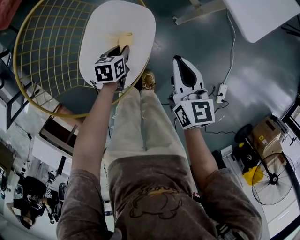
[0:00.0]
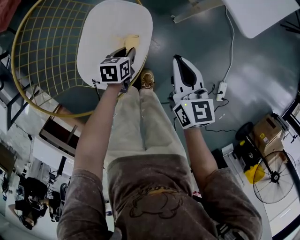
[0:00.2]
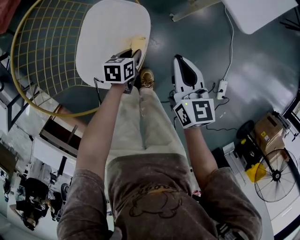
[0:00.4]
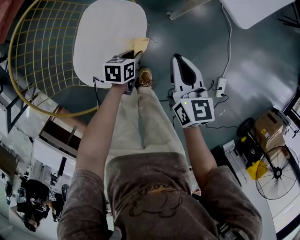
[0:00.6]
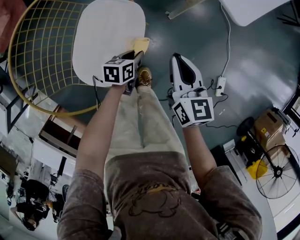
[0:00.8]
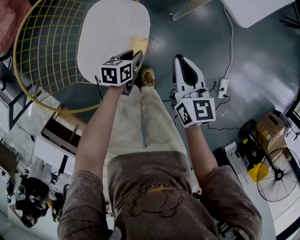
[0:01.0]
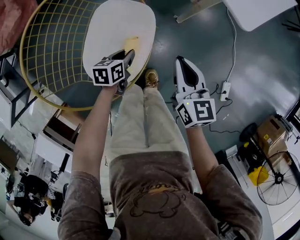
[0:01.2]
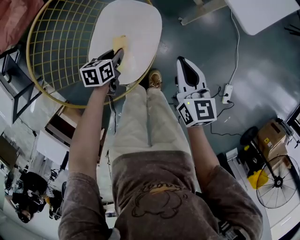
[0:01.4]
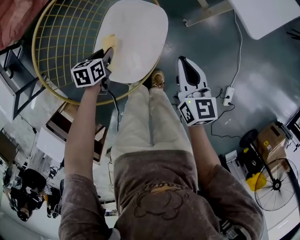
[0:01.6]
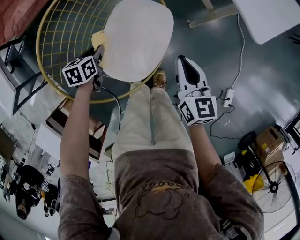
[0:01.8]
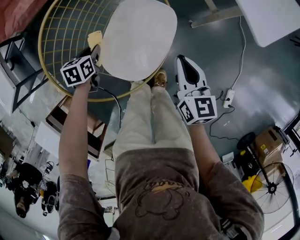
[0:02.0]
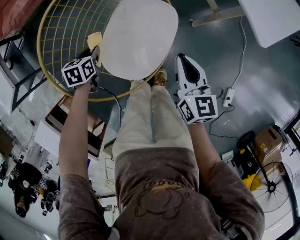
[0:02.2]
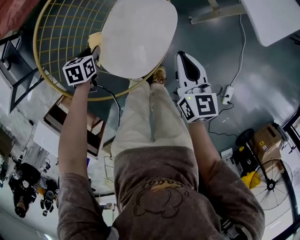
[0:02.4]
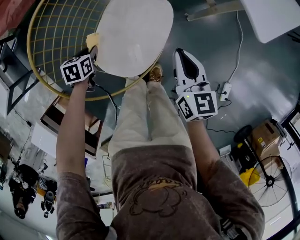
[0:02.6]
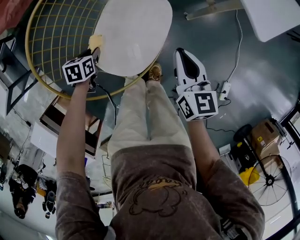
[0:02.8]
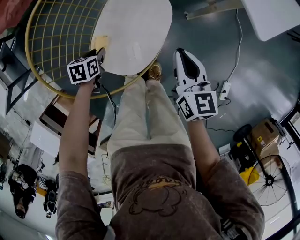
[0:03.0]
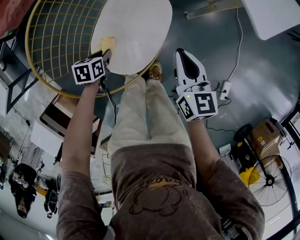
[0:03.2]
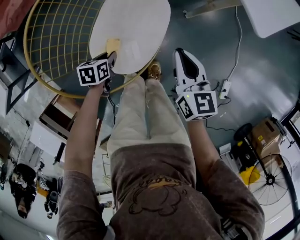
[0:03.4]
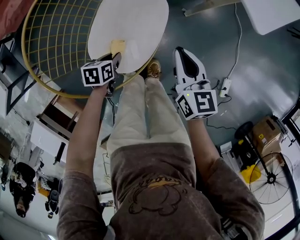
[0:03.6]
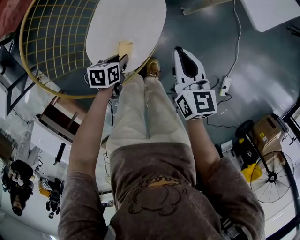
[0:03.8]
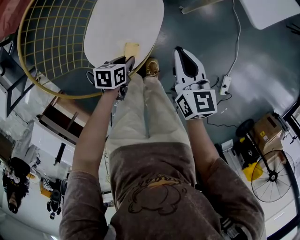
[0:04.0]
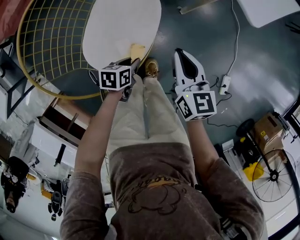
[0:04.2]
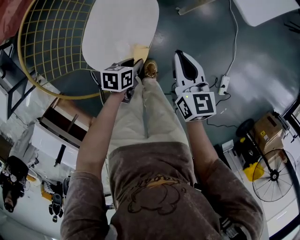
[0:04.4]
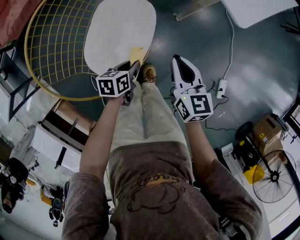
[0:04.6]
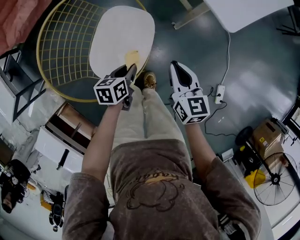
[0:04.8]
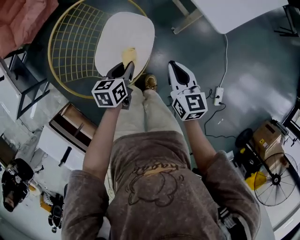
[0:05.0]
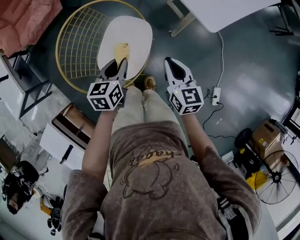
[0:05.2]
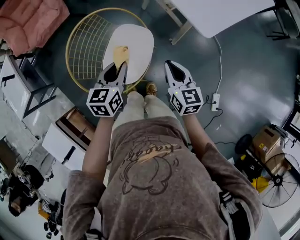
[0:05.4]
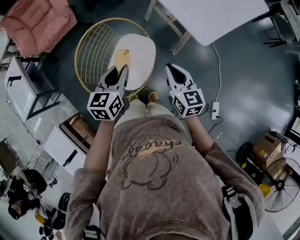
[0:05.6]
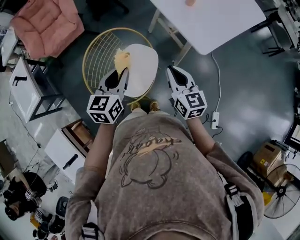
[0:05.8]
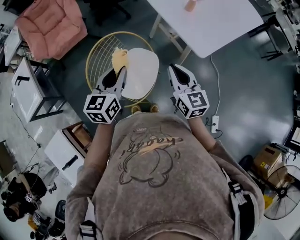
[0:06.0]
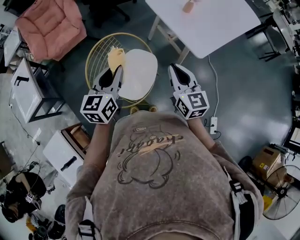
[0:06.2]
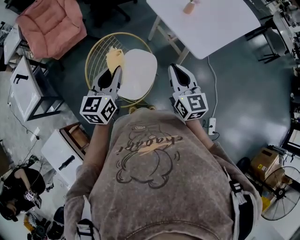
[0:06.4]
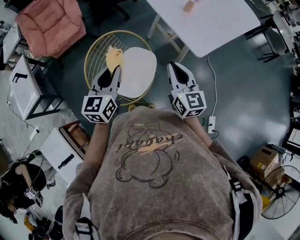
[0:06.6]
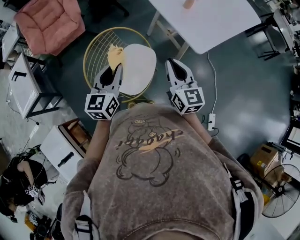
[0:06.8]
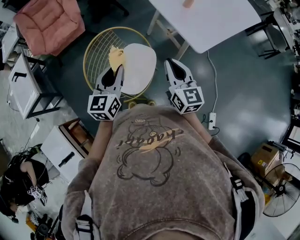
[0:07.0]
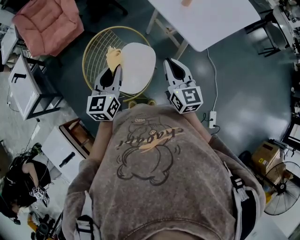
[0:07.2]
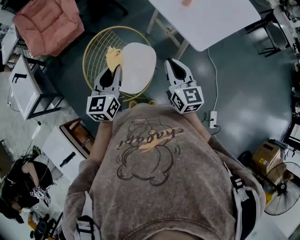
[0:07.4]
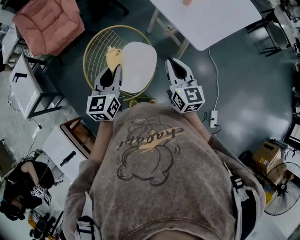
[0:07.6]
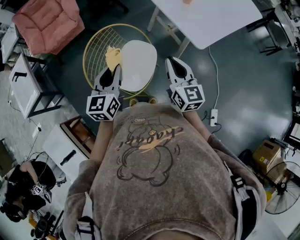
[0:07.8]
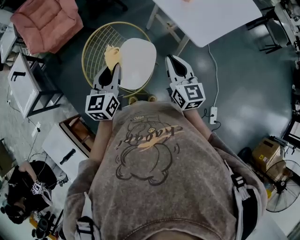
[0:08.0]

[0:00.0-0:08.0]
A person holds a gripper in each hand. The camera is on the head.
0.0 to 1.6 s: The left gripper travels to the left and backward by about 10 cm.
1.6 to 3.2 s: The left gripper reaches roughly 10 cm to the left, then returns.
3.2 to 4.8 s: The right gripper goes about 5 cm to the right; the left gripper heads to the right and upward, covering approximately 20 cm.
4.8 to 6.4 s: The two grippers go approximately 35 cm upward. The left gripper tips its fingers upward by roughly 30 degrees. Meanwhile the right gripper rotates roughly 20 degrees.
6.4 to 8.0 s: The grippers stay close to where they were, moving slightly.

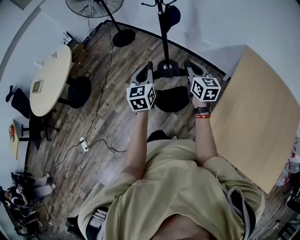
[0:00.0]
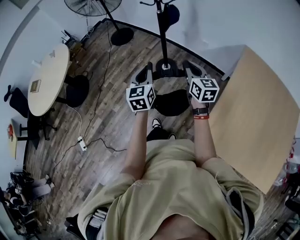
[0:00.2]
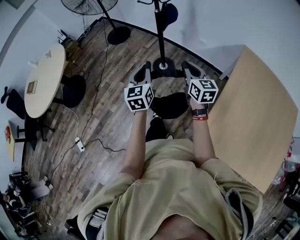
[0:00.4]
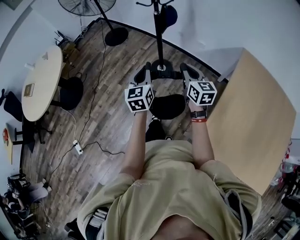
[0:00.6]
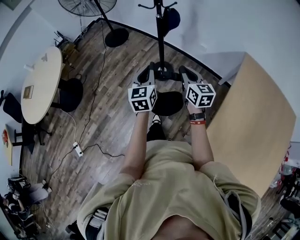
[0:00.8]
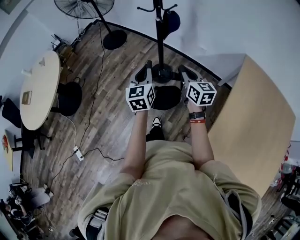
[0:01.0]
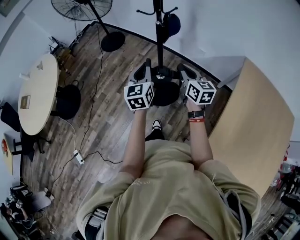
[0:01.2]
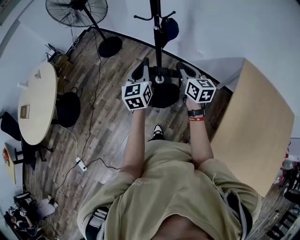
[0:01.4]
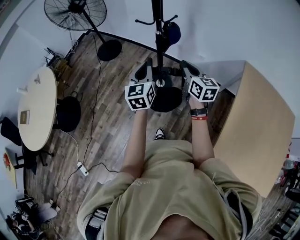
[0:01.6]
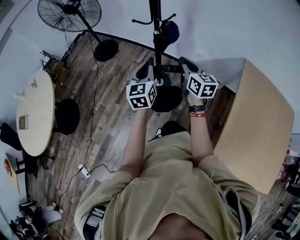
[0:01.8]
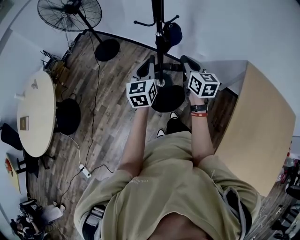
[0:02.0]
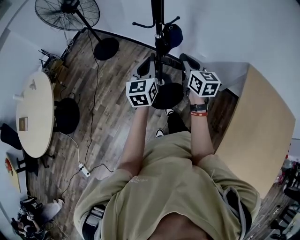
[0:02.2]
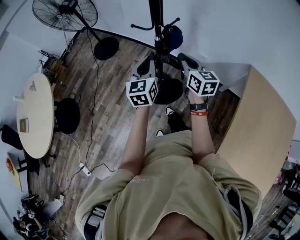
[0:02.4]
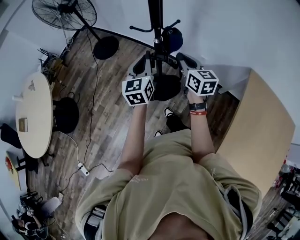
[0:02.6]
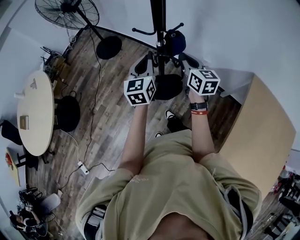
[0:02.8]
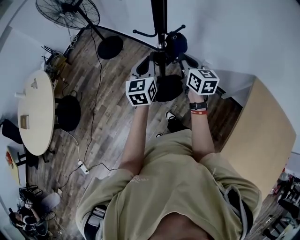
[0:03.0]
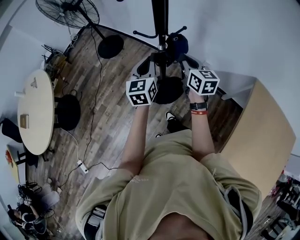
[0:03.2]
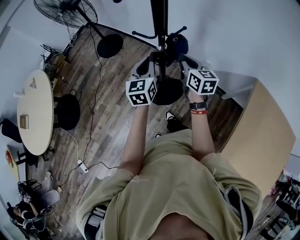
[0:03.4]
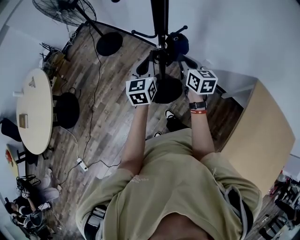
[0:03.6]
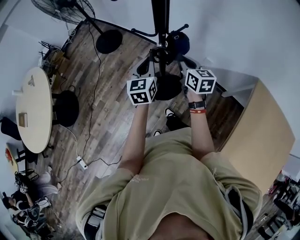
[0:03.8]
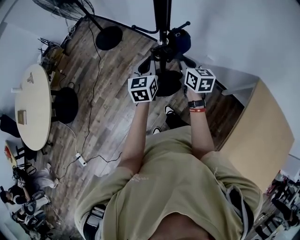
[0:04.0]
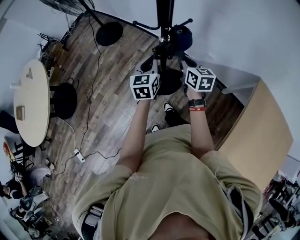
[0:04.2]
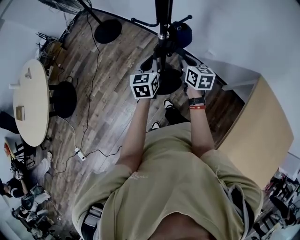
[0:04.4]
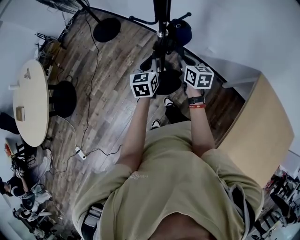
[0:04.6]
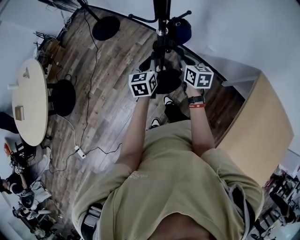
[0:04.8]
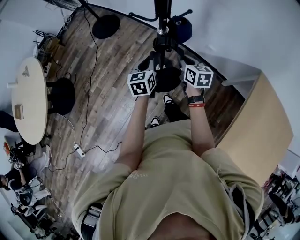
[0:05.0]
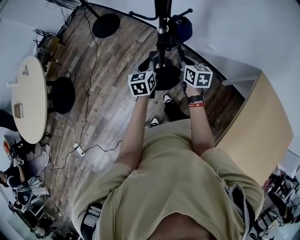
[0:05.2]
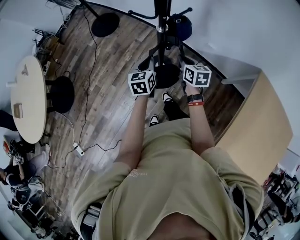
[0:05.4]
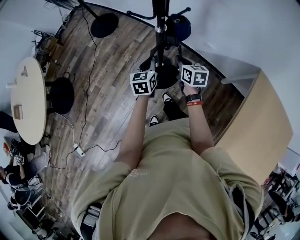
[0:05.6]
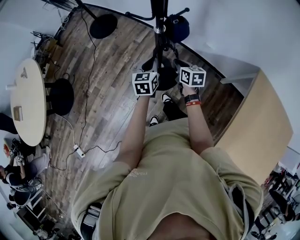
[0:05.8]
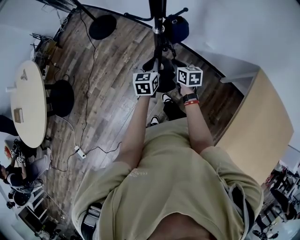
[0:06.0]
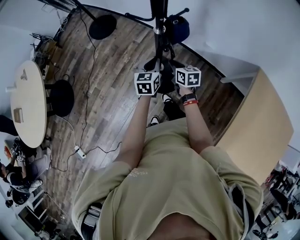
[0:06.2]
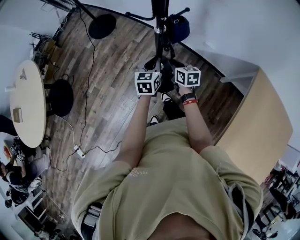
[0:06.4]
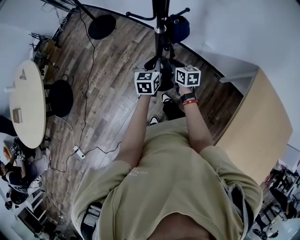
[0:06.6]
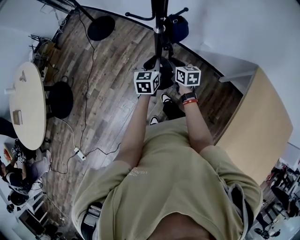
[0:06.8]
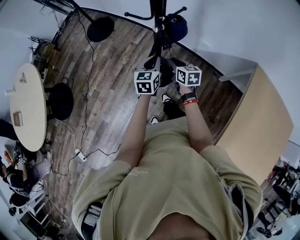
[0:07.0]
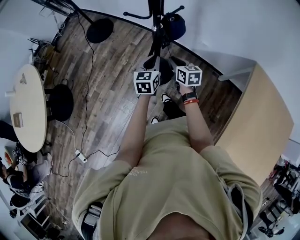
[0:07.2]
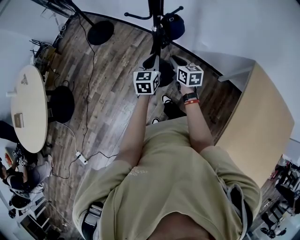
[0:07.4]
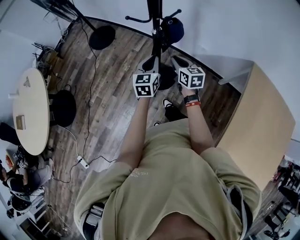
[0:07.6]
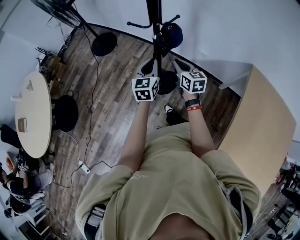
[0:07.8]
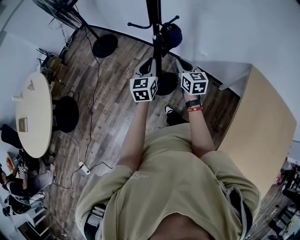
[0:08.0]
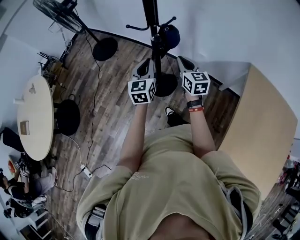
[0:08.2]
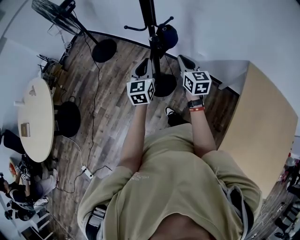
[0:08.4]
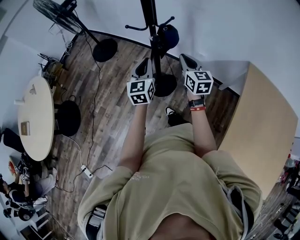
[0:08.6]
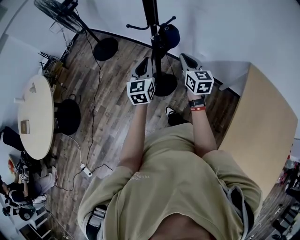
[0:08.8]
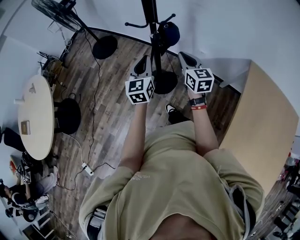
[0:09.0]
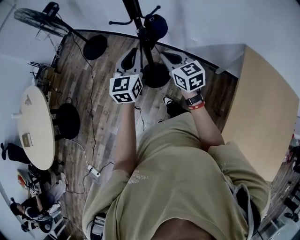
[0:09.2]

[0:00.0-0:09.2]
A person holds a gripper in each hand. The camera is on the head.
0.0 to 1.6 s: Both grippers move forward, some 30 cm.
1.6 to 3.0 s: Both grippers move forward, about 20 cm.
3.0 to 4.6 s: Both grippers travel together downward, some 15 cm.
4.6 to 6.2 s: The left gripper travels downward by approximately 5 cm, while the right gripper travels downward by some 10 cm.
6.2 to 7.6 s: Both grippers move upward, roughly 10 cm.
7.6 to 9.2 s: The grippers both shift upward by approximately 10 cm.

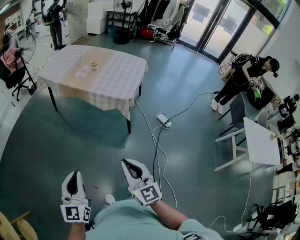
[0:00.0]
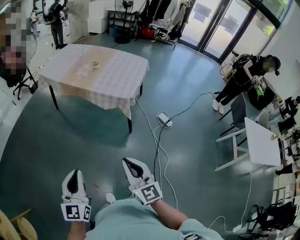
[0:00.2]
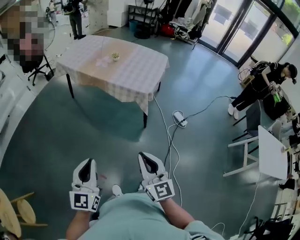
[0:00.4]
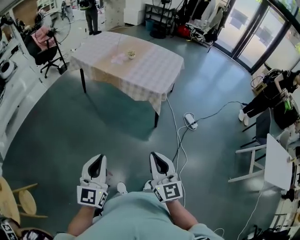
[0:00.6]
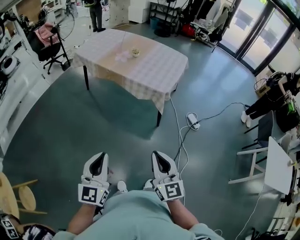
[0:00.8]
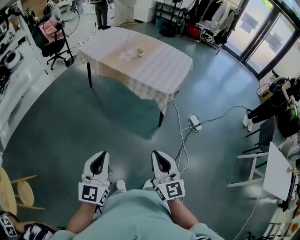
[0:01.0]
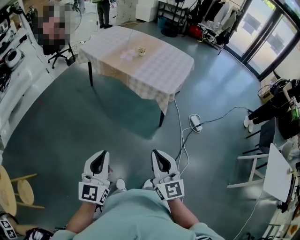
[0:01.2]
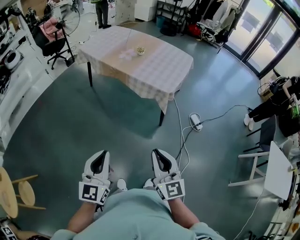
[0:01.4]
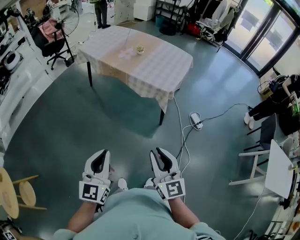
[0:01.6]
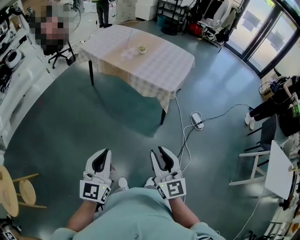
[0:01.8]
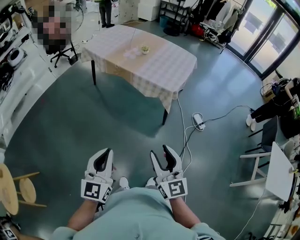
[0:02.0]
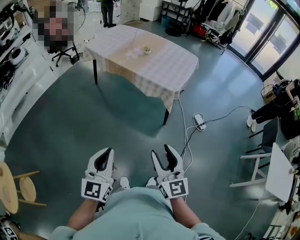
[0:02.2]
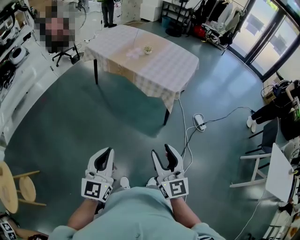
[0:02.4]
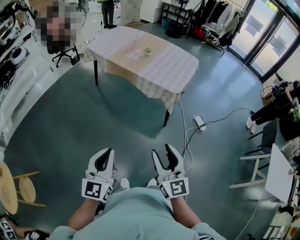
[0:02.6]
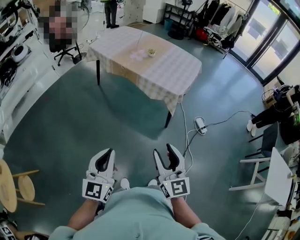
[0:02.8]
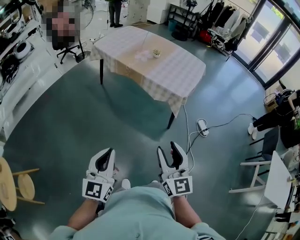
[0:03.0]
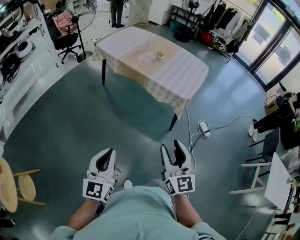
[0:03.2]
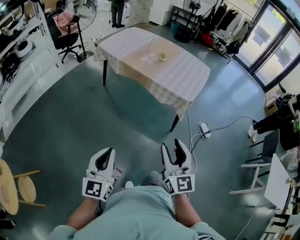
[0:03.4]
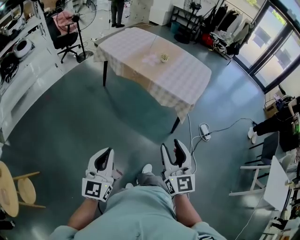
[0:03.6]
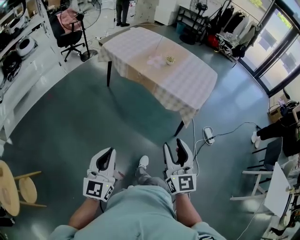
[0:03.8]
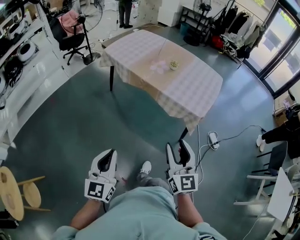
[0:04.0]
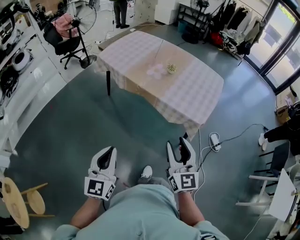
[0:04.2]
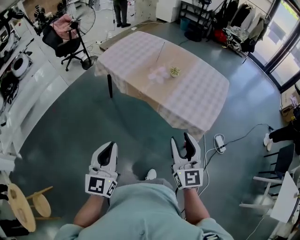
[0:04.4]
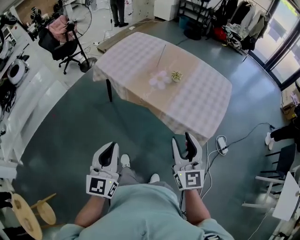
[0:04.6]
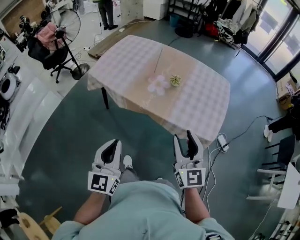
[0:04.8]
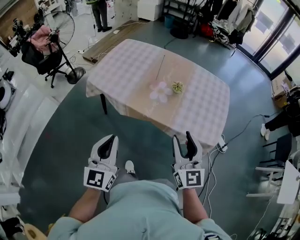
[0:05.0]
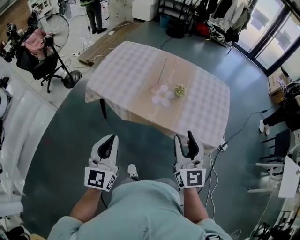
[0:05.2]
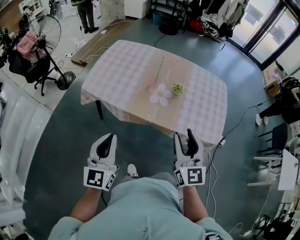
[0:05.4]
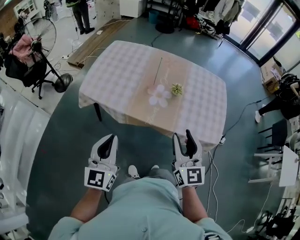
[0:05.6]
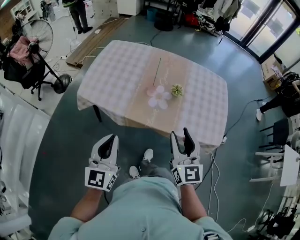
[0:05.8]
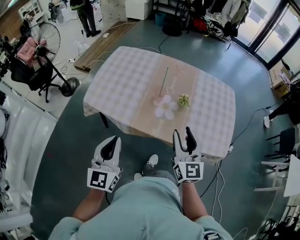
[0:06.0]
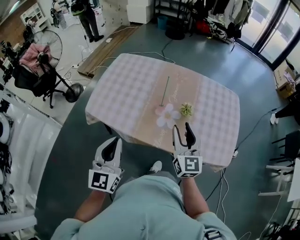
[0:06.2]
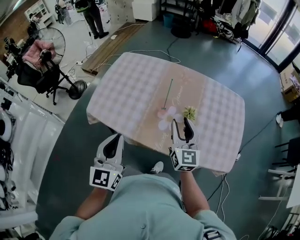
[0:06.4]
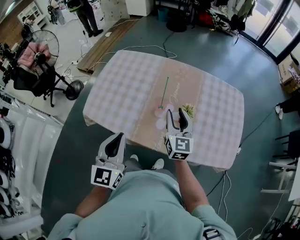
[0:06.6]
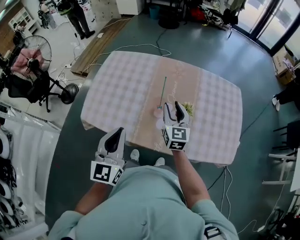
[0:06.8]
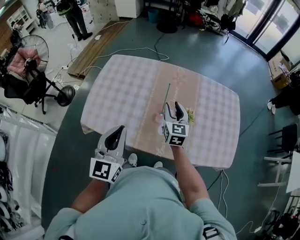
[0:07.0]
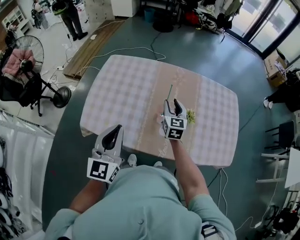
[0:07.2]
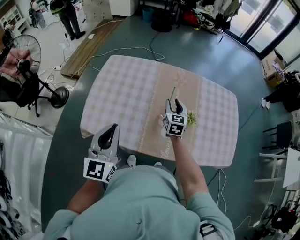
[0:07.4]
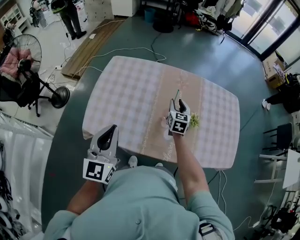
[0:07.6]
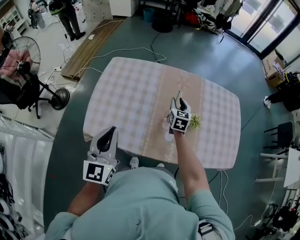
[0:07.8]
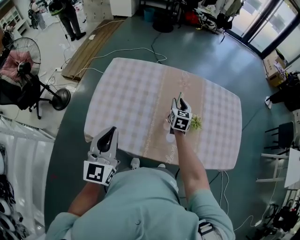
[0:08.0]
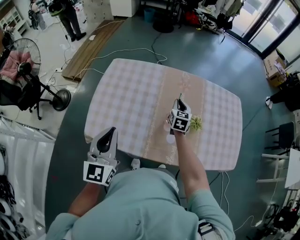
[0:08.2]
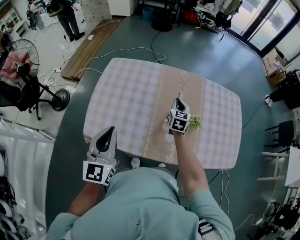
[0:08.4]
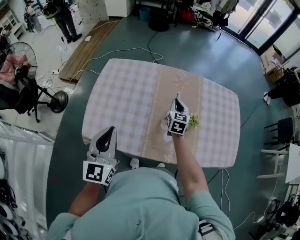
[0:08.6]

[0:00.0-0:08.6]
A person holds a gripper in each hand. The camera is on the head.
0.0 to 1.4 s: The grippers stay close to where they were, moving slightly.
1.4 to 2.8 s: The right gripper opens its fingers.
2.8 to 4.4 s: Both grippers move forward, about 30 cm.
4.4 to 5.8 s: The grippers both shift forward and to the left by about 35 cm. The right gripper swivels some 20 degrees. The left gripper changes its angle by approximately 20 degrees.
5.8 to 7.2 s: The left gripper travels forward by roughly 25 cm. Meanwhile the right gripper heads forward, covering approximately 35 cm, and rotates about 20 degrees.
7.2 to 8.6 s: The right gripper moves forward, roughly 5 cm, and closes. Meanwhile the left gripper goes approximately 5 cm to the left.
